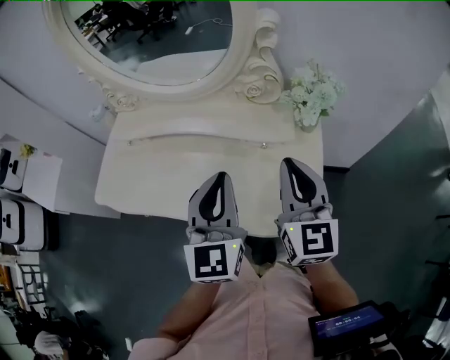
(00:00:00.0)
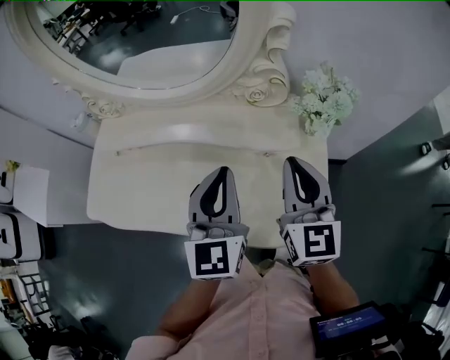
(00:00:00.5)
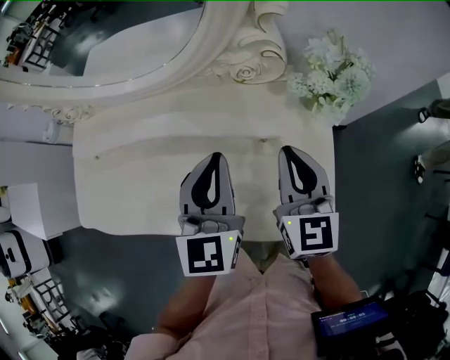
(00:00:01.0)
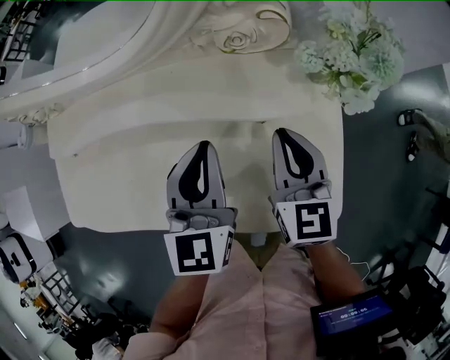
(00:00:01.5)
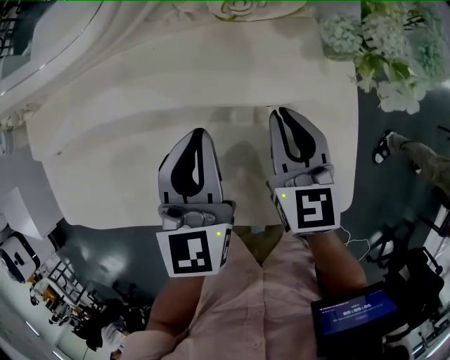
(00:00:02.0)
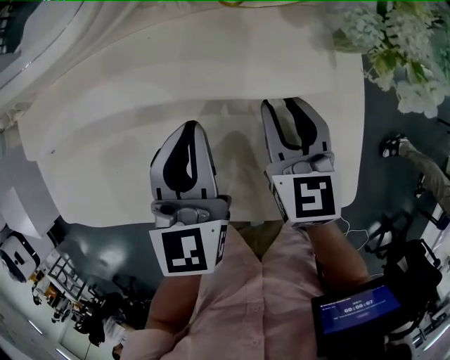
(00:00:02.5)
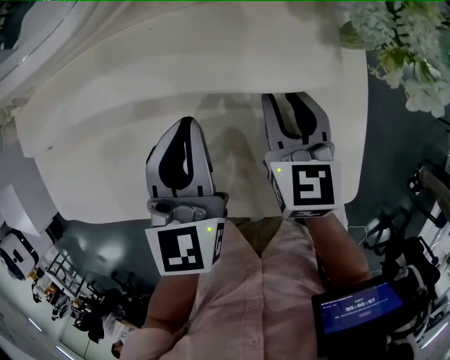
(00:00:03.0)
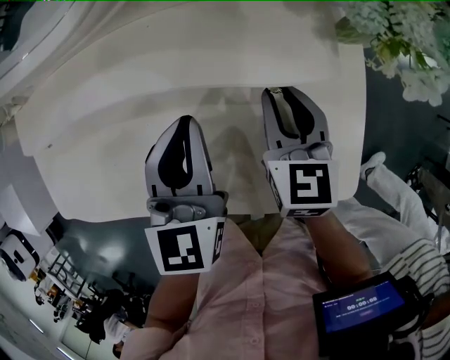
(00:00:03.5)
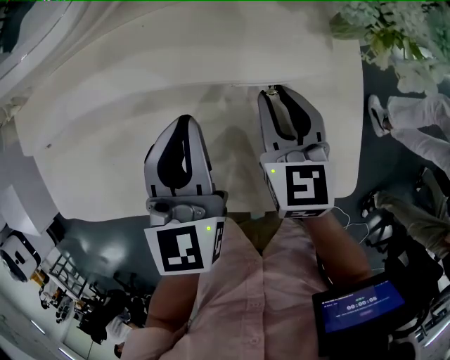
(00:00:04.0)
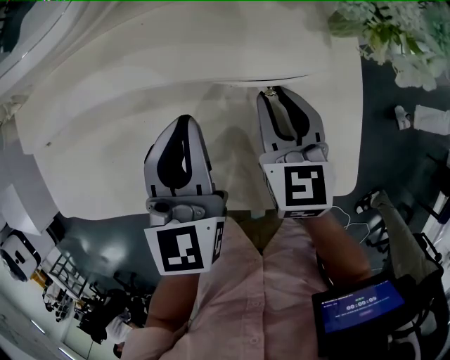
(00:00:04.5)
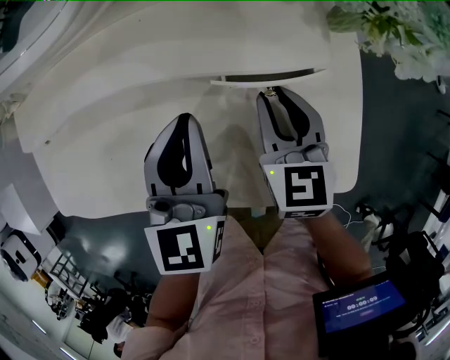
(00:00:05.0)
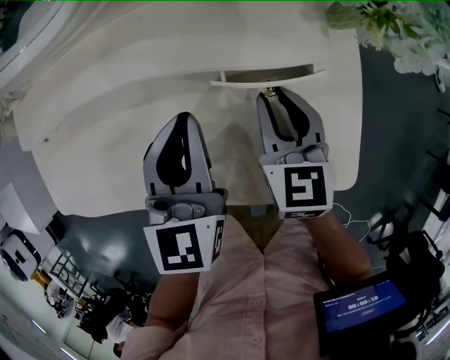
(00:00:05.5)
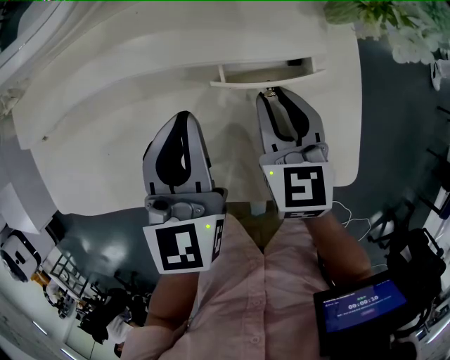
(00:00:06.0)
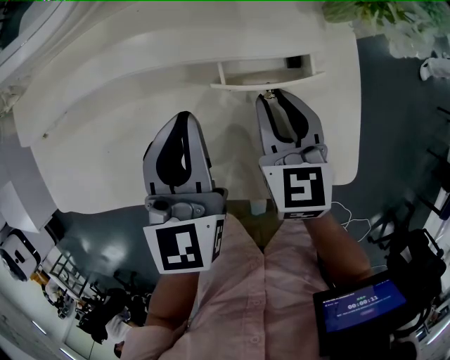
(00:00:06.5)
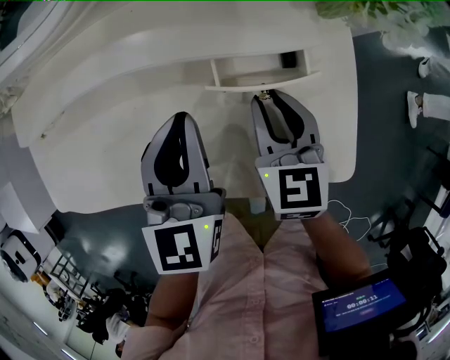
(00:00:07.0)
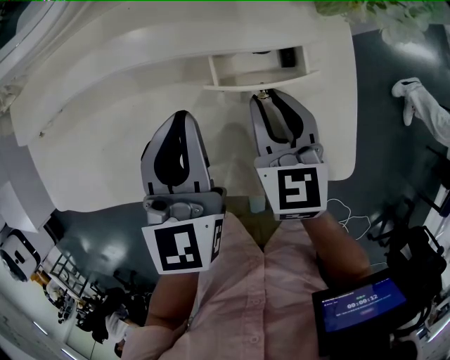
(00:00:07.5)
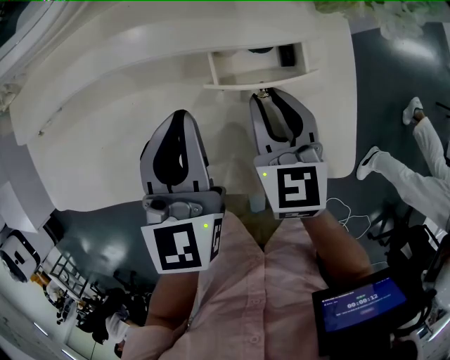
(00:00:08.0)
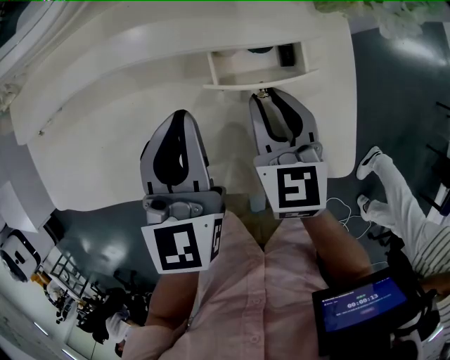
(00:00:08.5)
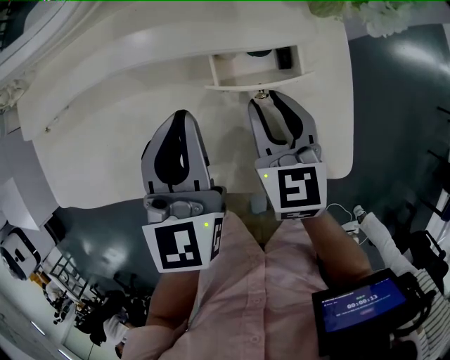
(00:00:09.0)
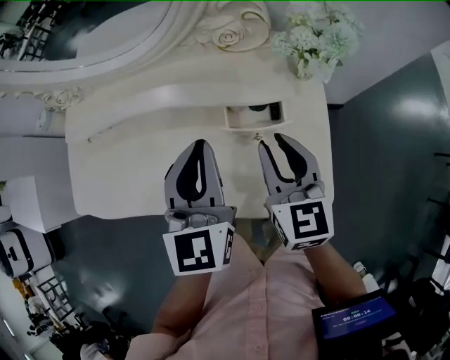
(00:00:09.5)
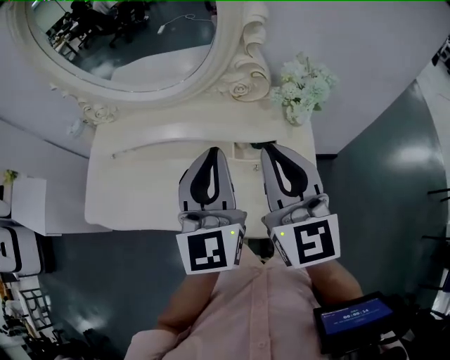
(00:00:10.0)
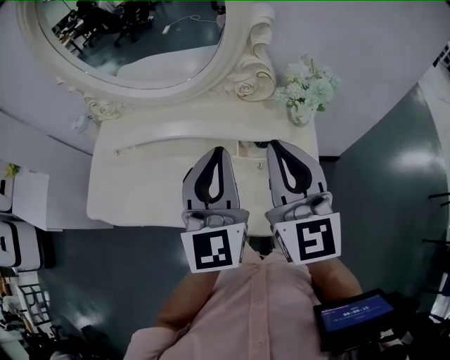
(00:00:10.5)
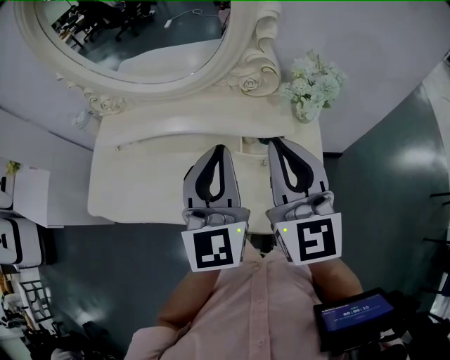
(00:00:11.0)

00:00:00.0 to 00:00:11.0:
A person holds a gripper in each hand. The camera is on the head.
00:00:00.0 to 00:00:02.0: Both grippers move downward and forward, some 20 cm. The left gripper changes its angle by about 20 degrees, while the right gripper turns by approximately 30 degrees.
00:00:02.0 to 00:00:07.5: There are only small adjustments of the grippers.
00:00:07.5 to 00:00:09.0: Both grippers stay about where they are.
00:00:09.0 to 00:00:11.0: The two grippers go roughly 25 cm upward. The left gripper changes its angle by some 20 degrees. The right gripper tips its fingers upward by roughly 30 degrees, and closes up.

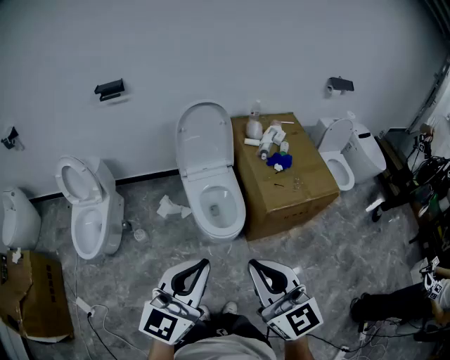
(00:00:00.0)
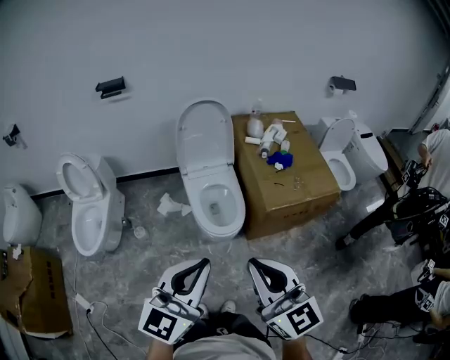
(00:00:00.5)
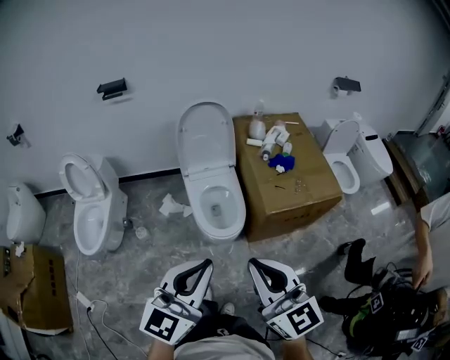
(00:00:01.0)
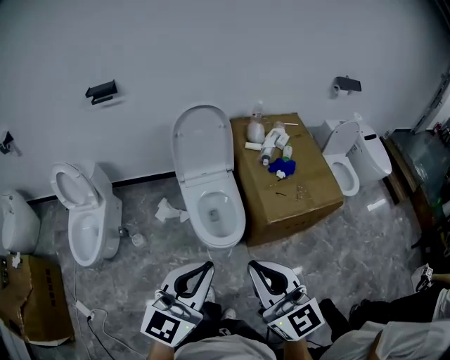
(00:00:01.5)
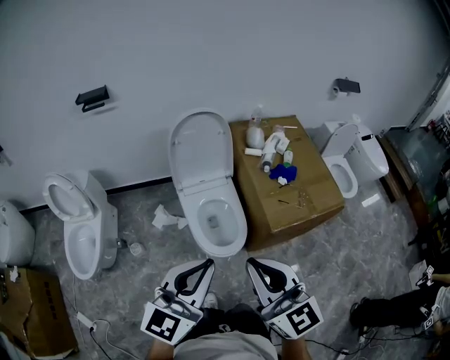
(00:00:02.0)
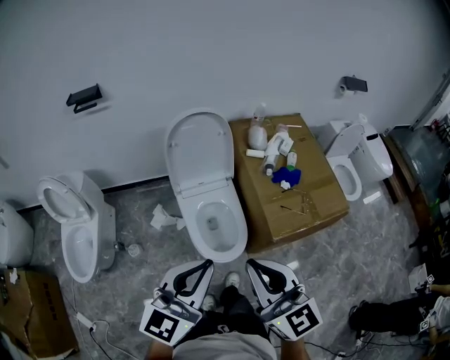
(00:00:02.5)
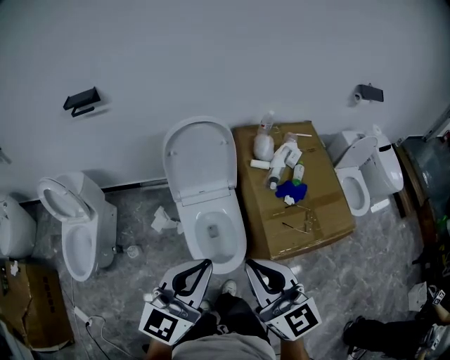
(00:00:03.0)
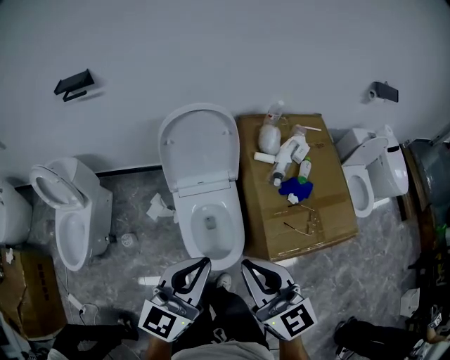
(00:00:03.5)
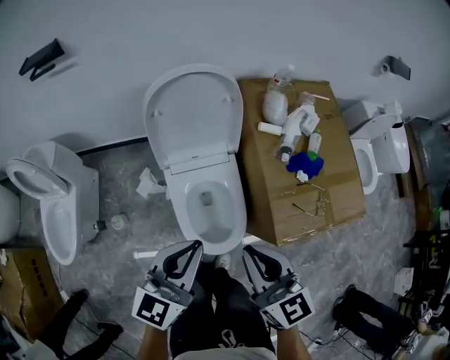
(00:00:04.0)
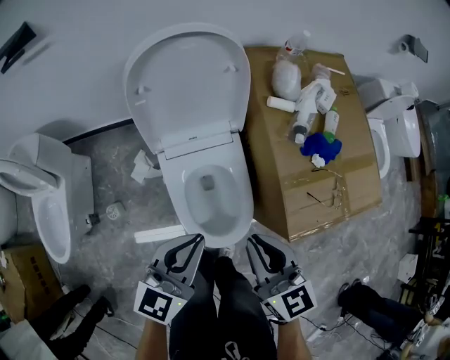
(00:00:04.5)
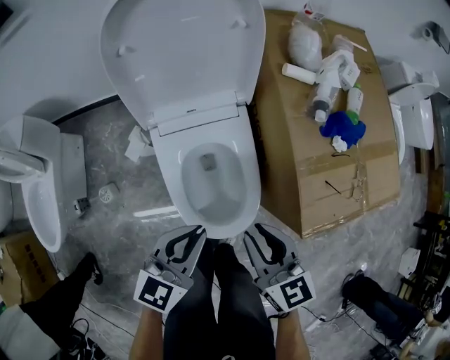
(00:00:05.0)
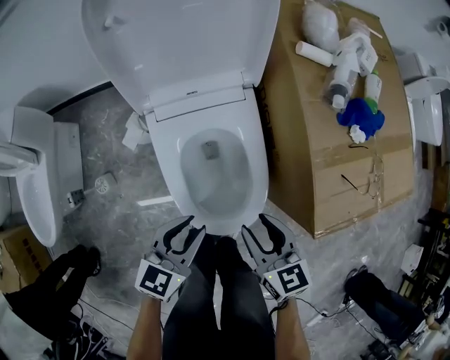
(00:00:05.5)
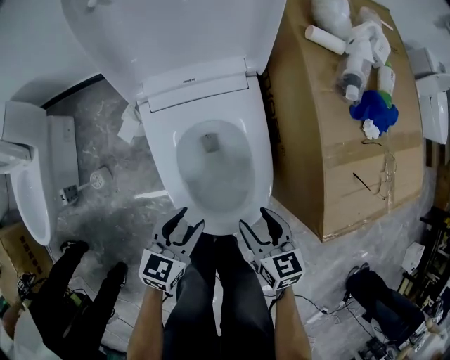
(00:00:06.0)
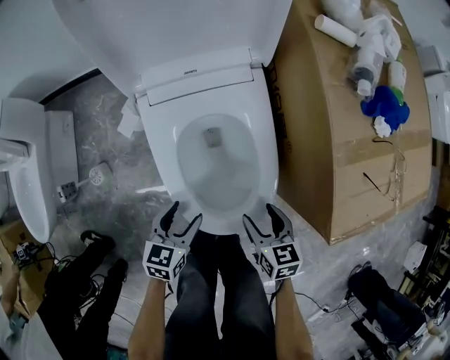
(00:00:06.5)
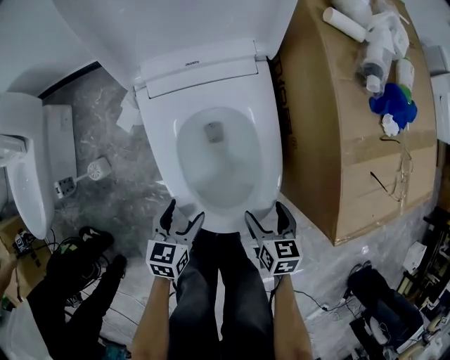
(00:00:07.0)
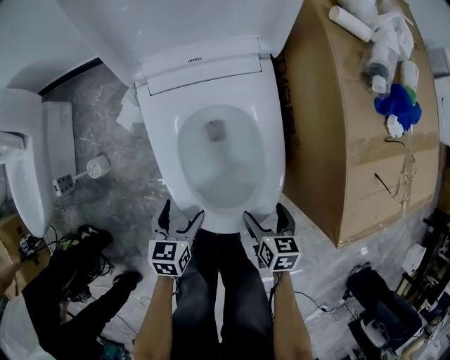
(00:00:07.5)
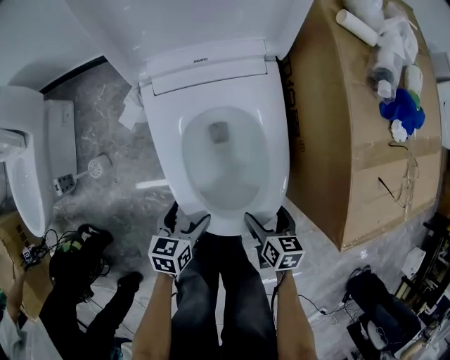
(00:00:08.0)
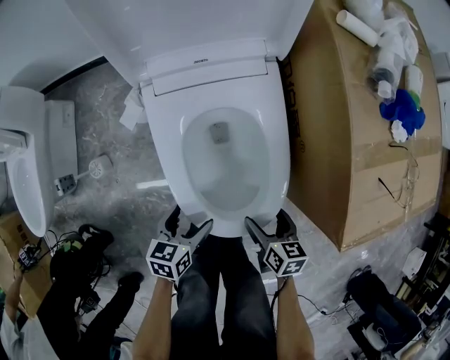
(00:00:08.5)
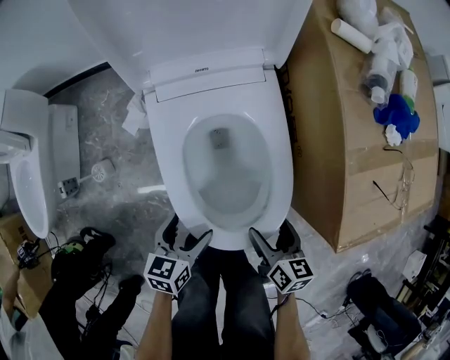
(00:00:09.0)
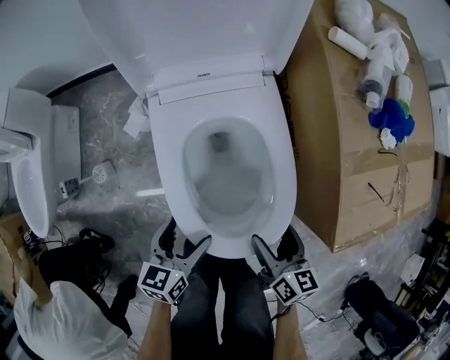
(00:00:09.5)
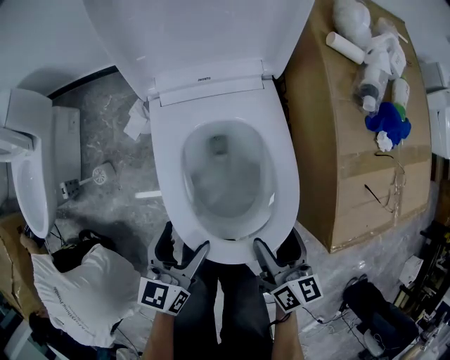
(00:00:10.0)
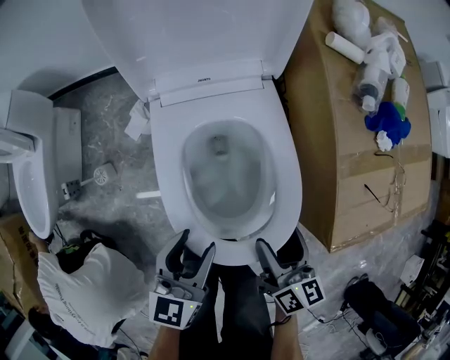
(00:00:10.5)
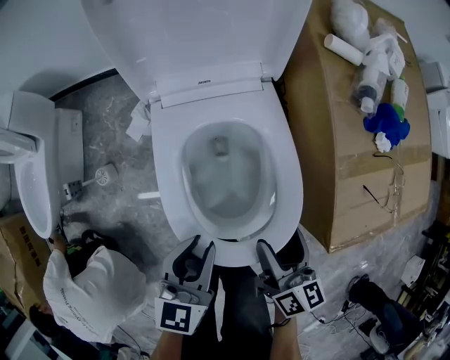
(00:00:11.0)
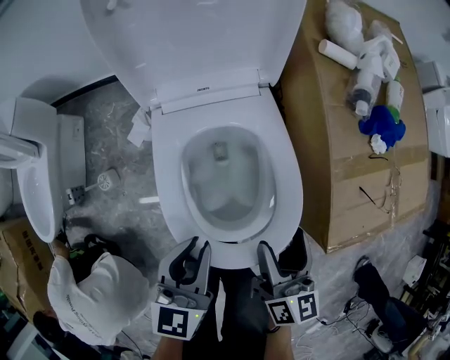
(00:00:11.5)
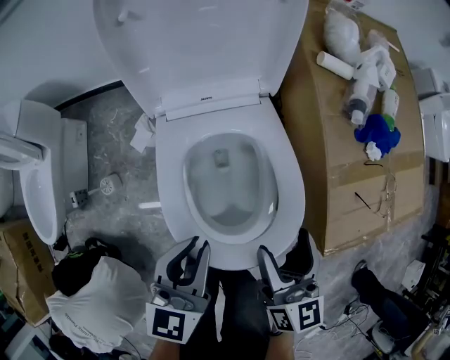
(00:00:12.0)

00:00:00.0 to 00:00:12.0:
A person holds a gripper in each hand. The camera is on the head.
00:00:00.0 to 00:00:02.0: Both grippers travel together forward, roughly 15 cm.
00:00:02.0 to 00:00:04.0: Both grippers travel together forward and downward, some 30 cm.
00:00:04.0 to 00:00:06.0: Both grippers travel together downward, some 40 cm. The right gripper rotates about 30 degrees, and opens its fingers, while the left gripper turns by approximately 30 degrees, and opens.
00:00:06.0 to 00:00:08.0: The two grippers go some 15 cm downward. The left gripper changes its angle by about 20 degrees, and opens its fingers; the right gripper opens its fingers.
00:00:08.0 to 00:00:10.0: Both grippers move upward, approximately 20 cm. The right gripper rotates about 30 degrees, while the left gripper rotates approximately 20 degrees.
00:00:10.0 to 00:00:12.0: Both grippers move upward, about 15 cm. The left gripper closes its fingers.

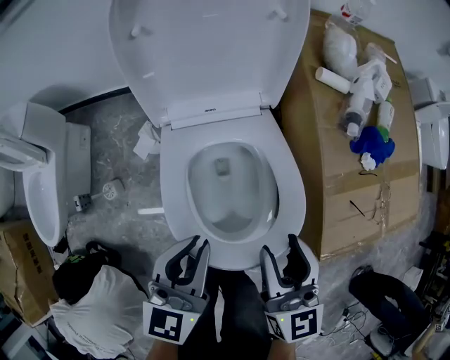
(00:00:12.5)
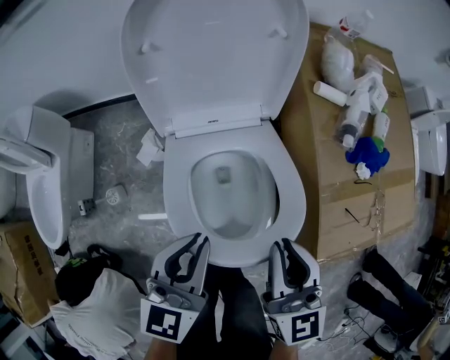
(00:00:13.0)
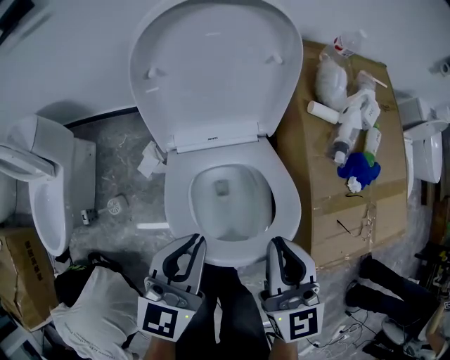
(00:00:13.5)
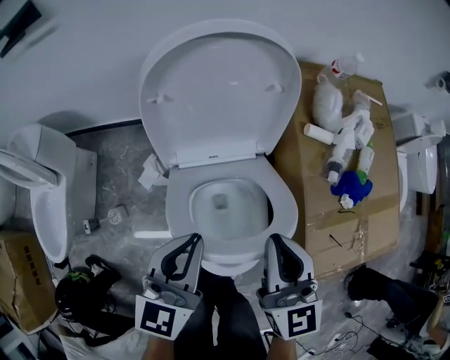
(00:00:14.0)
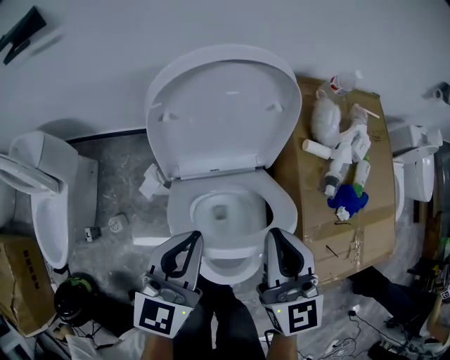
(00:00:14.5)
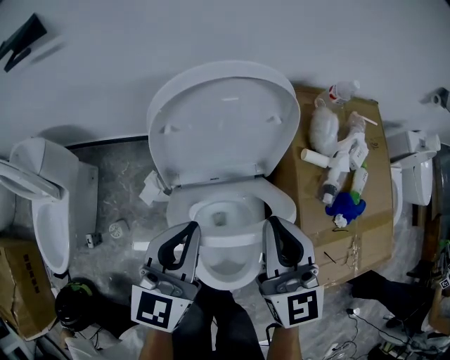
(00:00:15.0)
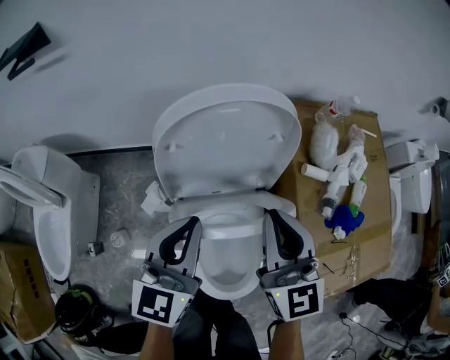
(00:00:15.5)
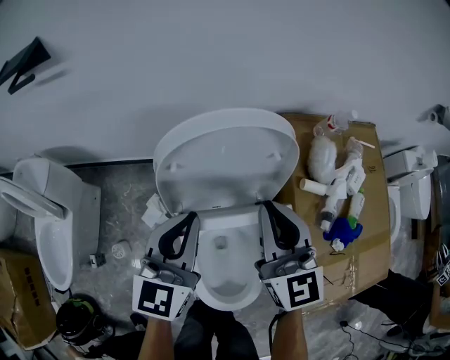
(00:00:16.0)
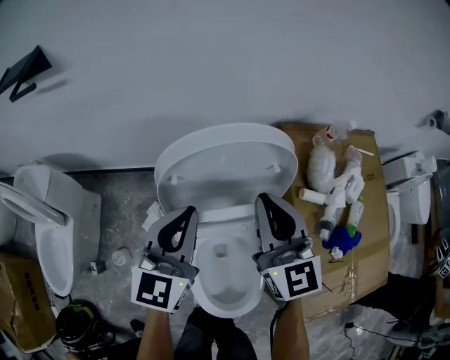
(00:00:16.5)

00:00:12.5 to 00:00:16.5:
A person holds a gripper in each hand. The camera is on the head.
00:00:12.5 to 00:00:14.5: The two grippers go some 15 cm forward and upward. The right gripper closes up.
00:00:14.5 to 00:00:16.5: The grippers both shift forward by some 15 cm.
